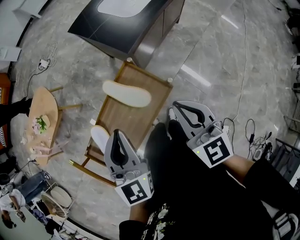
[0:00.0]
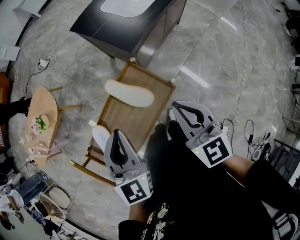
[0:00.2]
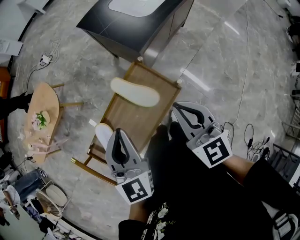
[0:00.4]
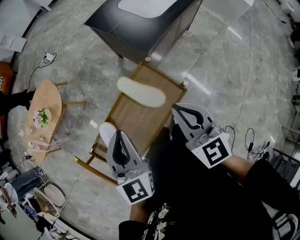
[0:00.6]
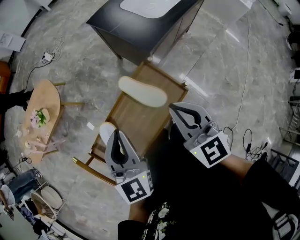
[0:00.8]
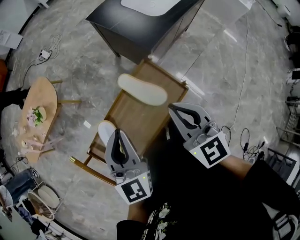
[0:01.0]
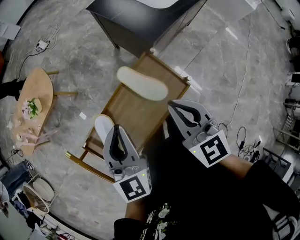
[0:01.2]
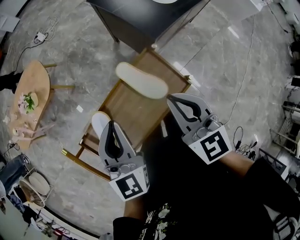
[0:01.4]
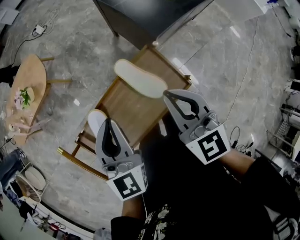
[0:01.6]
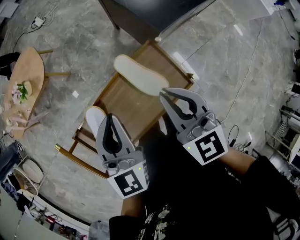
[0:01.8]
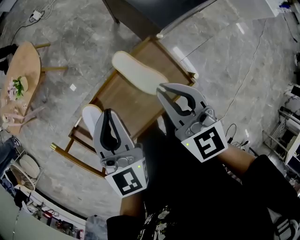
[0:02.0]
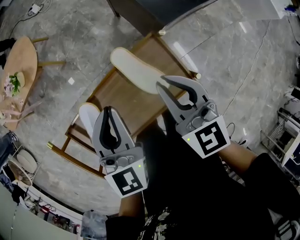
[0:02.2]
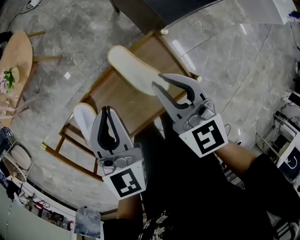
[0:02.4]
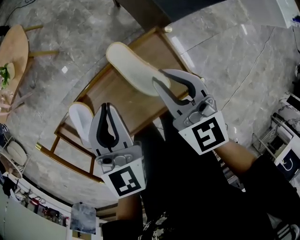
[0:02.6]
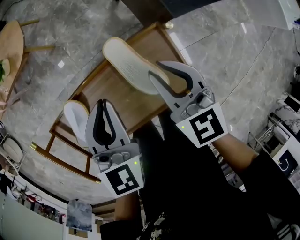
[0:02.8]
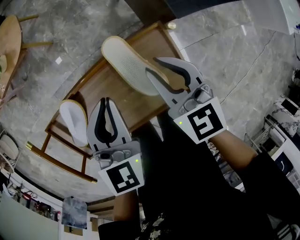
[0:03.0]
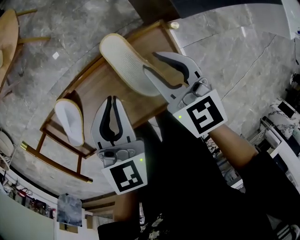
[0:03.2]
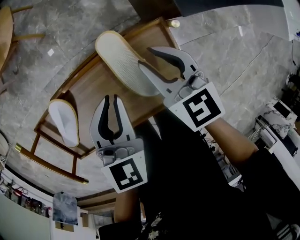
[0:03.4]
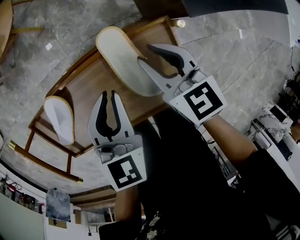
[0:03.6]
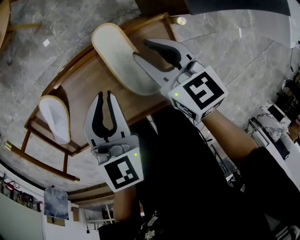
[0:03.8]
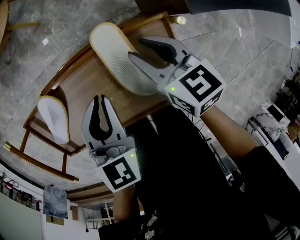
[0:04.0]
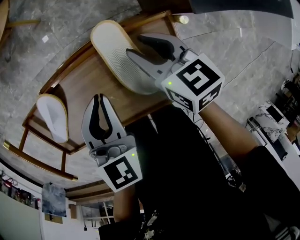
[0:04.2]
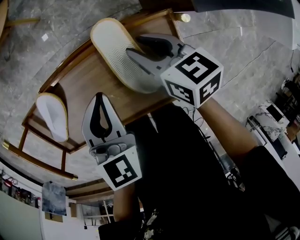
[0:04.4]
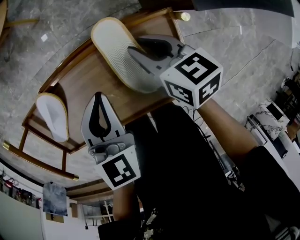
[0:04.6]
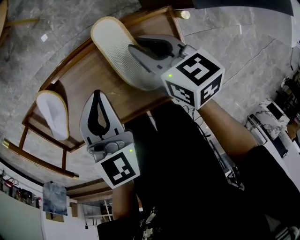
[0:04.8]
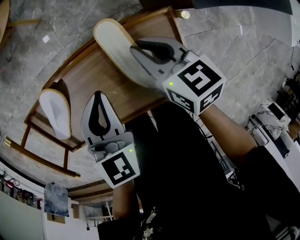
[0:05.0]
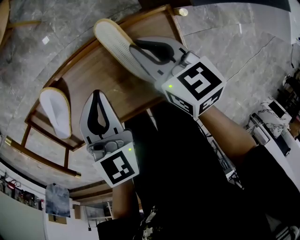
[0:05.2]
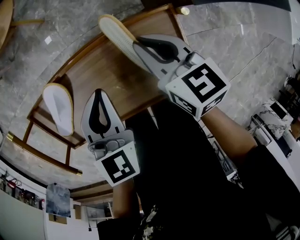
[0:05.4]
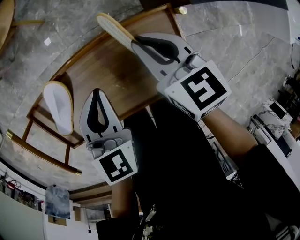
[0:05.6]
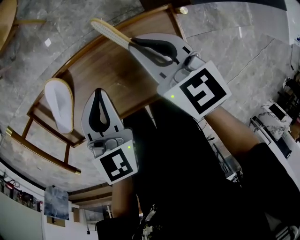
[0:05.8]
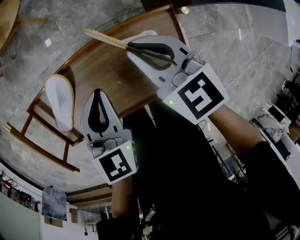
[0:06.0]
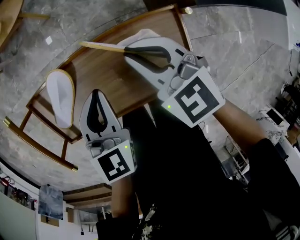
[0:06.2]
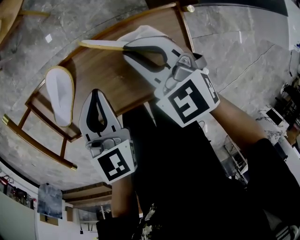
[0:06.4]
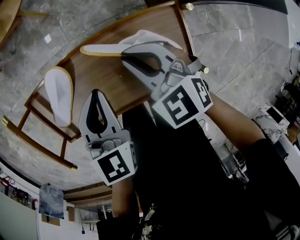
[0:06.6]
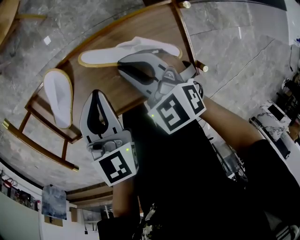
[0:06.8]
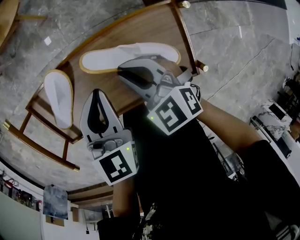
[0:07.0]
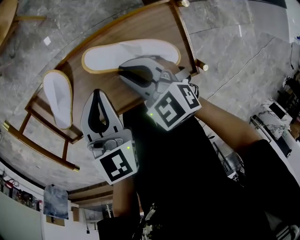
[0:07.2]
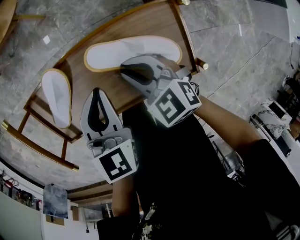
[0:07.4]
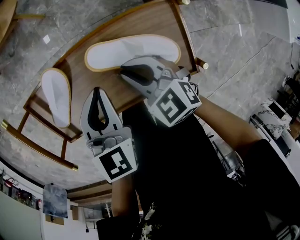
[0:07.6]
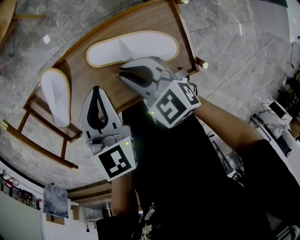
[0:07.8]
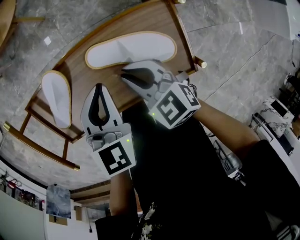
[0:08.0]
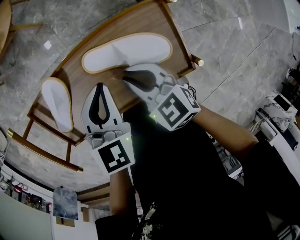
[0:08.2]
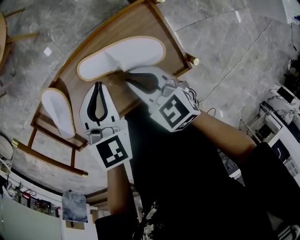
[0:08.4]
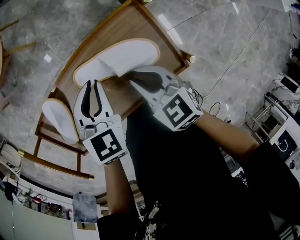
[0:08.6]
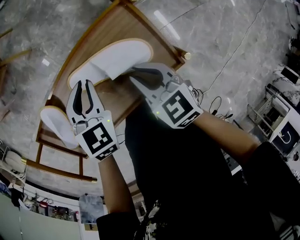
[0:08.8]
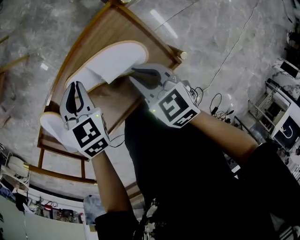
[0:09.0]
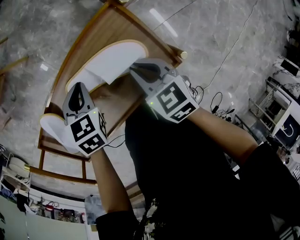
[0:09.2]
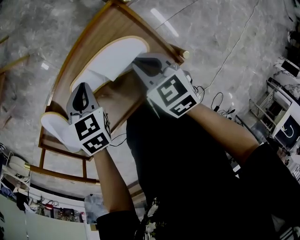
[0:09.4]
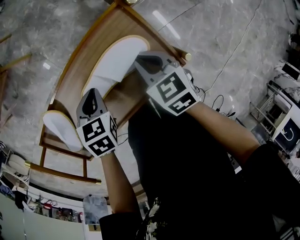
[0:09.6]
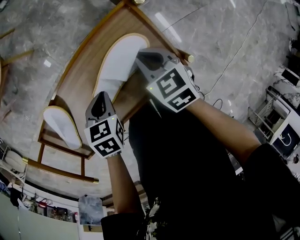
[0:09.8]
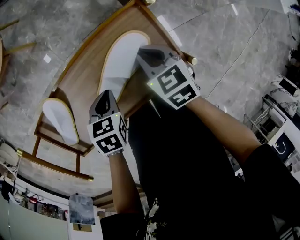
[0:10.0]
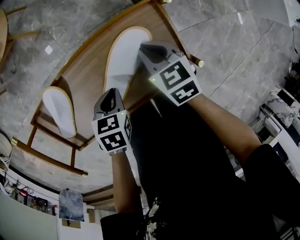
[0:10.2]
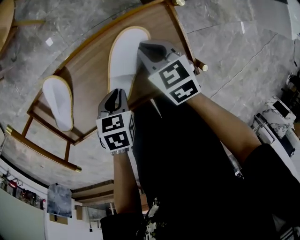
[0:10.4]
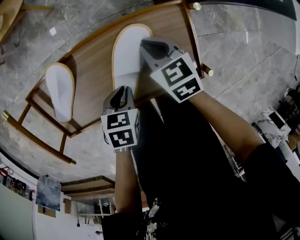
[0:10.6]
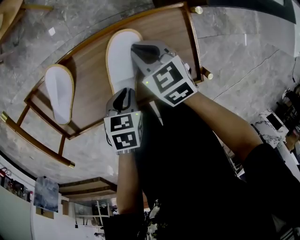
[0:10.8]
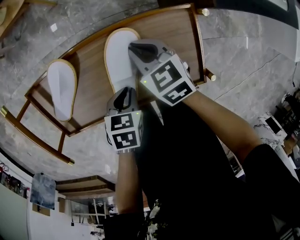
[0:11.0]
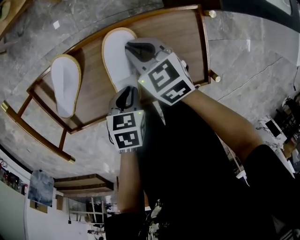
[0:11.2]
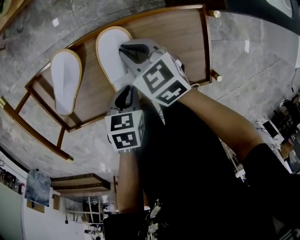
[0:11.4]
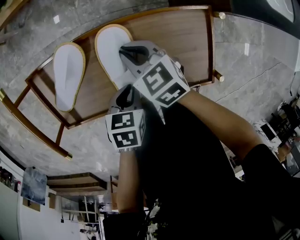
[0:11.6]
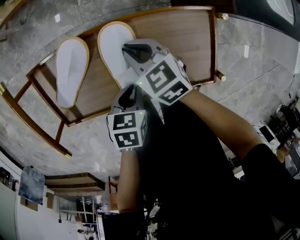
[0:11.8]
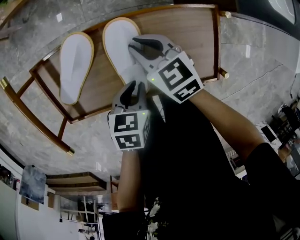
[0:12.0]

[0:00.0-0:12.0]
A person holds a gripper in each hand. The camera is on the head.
0.0 to 1.6 s: The two grippers go about 15 cm to the left and forward.
1.6 to 3.0 s: The right gripper moves downward and forward, some 15 cm, and changes its angle by about 20 degrees, while the left gripper heads downward, covering about 10 cm.
3.0 to 4.4 s: The right gripper is displaced downward by about 10 cm, and changes its angle by roughly 30 degrees. The left gripper travels downward by about 5 cm.
4.4 to 6.0 s: The left gripper ends up roughly 5 cm from where it was; the right gripper is displaced upward and to the left by some 10 cm, rotates some 30 degrees, and closes.
6.0 to 7.6 s: The right gripper shifts some 10 cm downward, backward and to the left.
7.6 to 9.0 s: The right gripper heads to the right, covering approximately 10 cm, and turns by approximately 40 degrees; the left gripper goes roughly 10 cm downward and forward, and turns by approximately 30 degrees.
9.0 to 10.4 s: The right gripper heads forward, covering some 5 cm. Meanwhile the left gripper moves backward, some 15 cm, and rotates roughly 30 degrees.
10.4 to 12.0 s: The right gripper heads to the left, covering approximately 15 cm, and changes its angle by roughly 20 degrees.

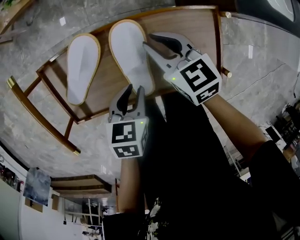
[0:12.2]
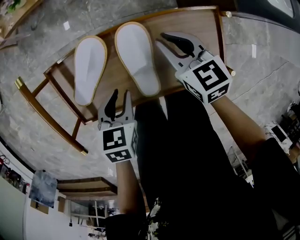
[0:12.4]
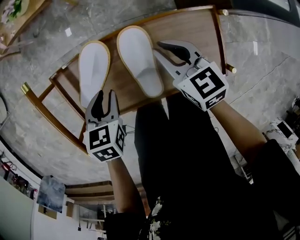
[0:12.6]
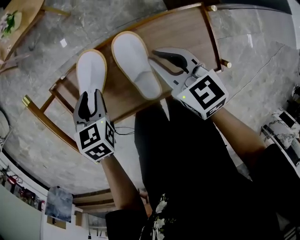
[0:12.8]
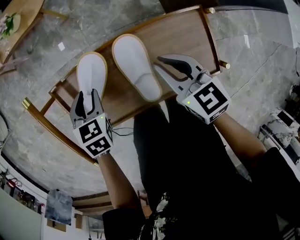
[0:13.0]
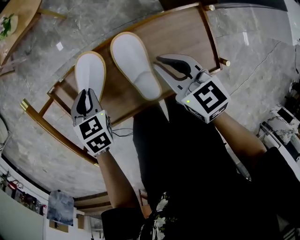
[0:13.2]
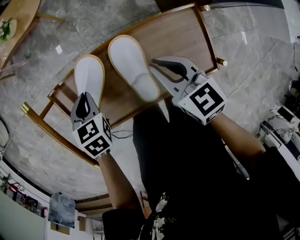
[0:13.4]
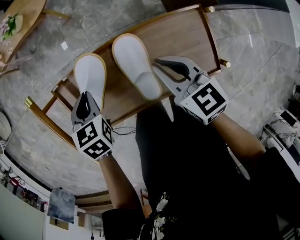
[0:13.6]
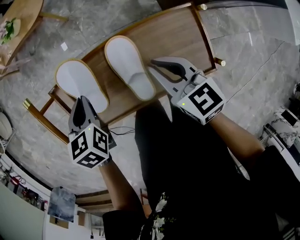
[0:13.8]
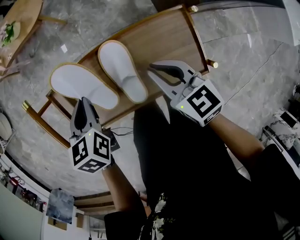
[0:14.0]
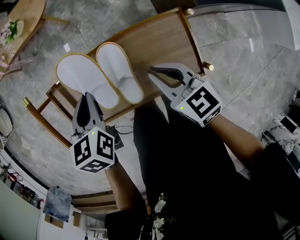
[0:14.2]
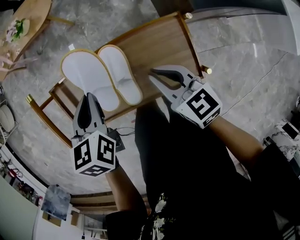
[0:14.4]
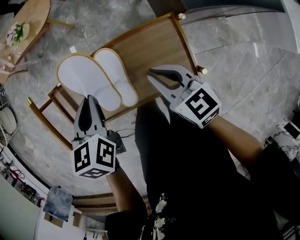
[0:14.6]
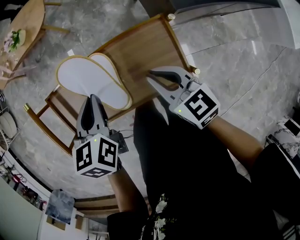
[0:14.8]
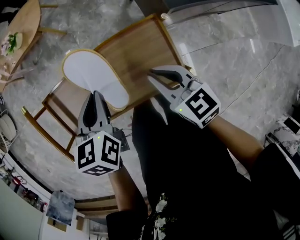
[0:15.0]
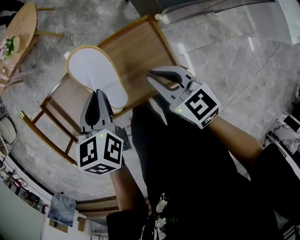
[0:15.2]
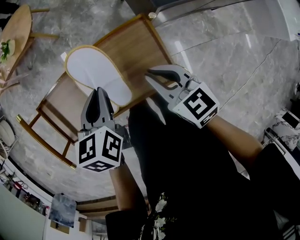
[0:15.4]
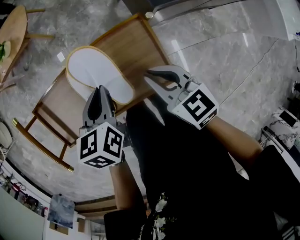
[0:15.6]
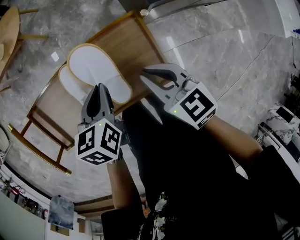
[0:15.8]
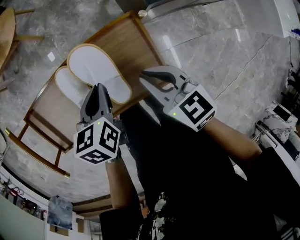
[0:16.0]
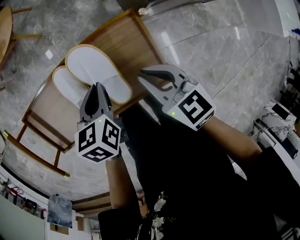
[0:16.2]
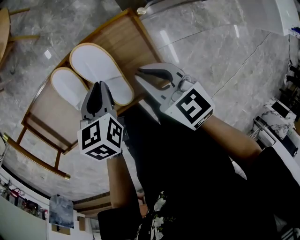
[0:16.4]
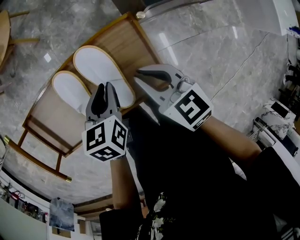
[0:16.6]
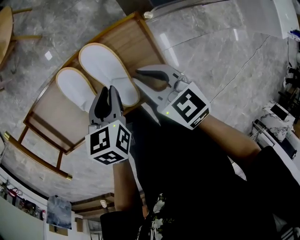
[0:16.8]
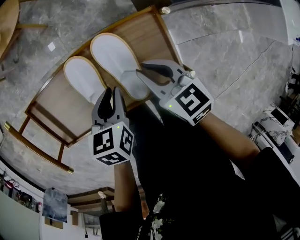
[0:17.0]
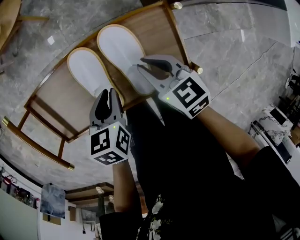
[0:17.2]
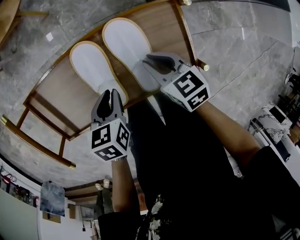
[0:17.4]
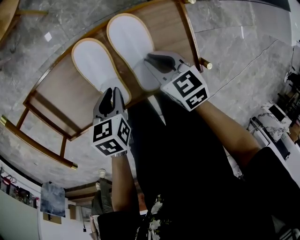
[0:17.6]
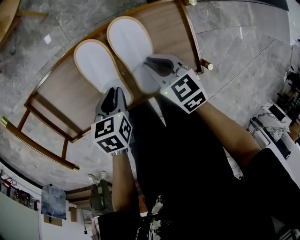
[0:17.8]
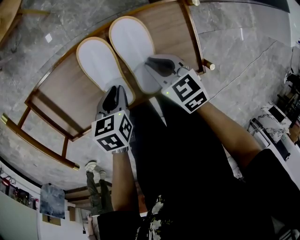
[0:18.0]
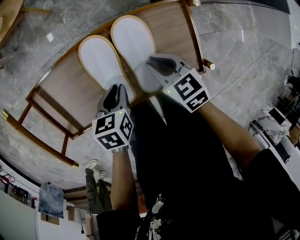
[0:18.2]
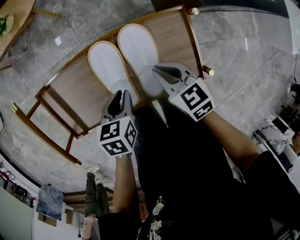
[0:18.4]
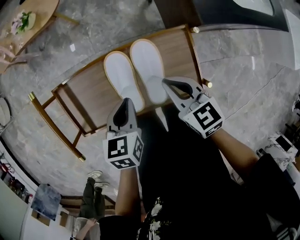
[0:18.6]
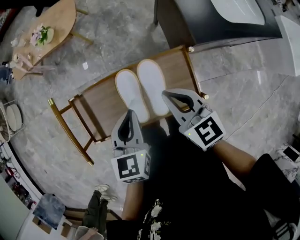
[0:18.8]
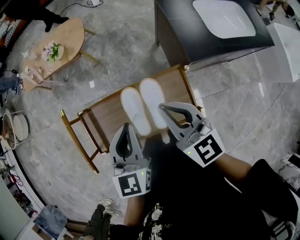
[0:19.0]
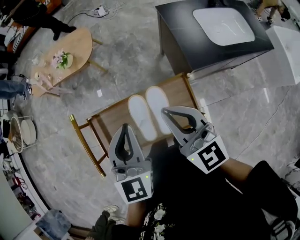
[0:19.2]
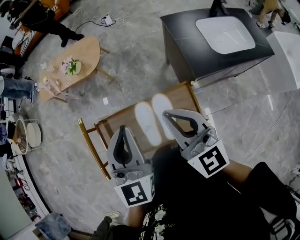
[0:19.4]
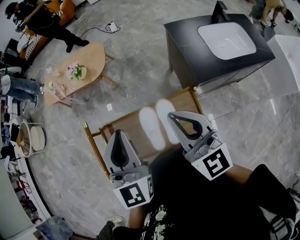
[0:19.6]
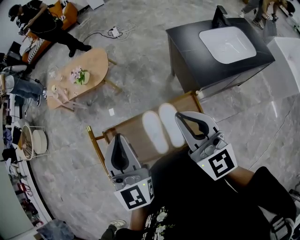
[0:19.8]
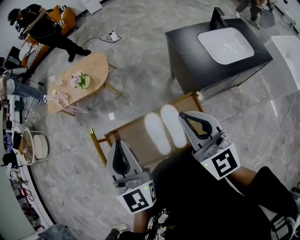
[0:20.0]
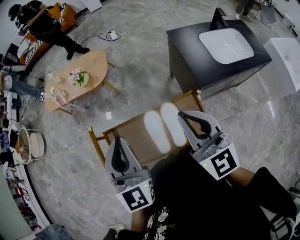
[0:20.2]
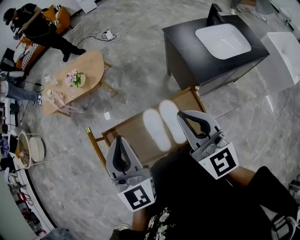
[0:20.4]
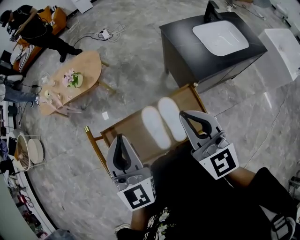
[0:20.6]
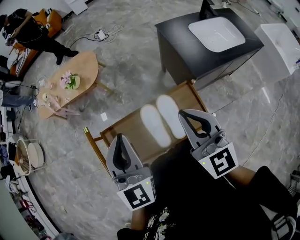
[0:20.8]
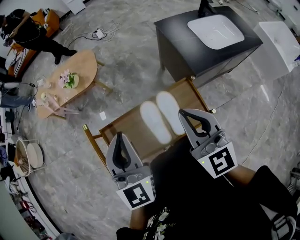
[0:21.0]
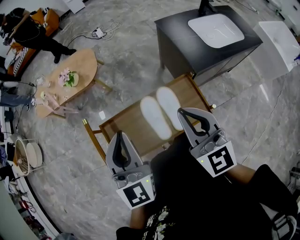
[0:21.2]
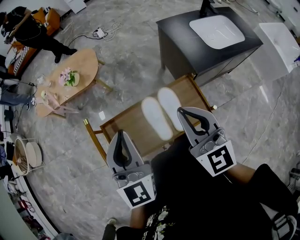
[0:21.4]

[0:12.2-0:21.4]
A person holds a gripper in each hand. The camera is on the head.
12.2 to 13.8 s: The right gripper heads upward, covering roughly 5 cm, while the left gripper heads to the left and forward, covering about 20 cm, and rotates some 20 degrees.
13.8 to 15.2 s: The left gripper travels to the right by about 20 cm. Meanwhile the right gripper is displaced to the right and backward by approximately 15 cm.
15.2 to 16.8 s: The left gripper goes some 10 cm downward and to the right.
16.8 to 18.4 s: The left gripper is displaced to the left by about 10 cm. Meanwhile the right gripper shifts roughly 10 cm to the left and downward.
18.4 to 19.8 s: The two grippers go about 40 cm upward. The left gripper points its fingers some 50 degrees further upward. Meanwhile the right gripper tilts its fingers some 50 degrees upward.
19.8 to 21.4 s: The right gripper travels to the left by some 5 cm. The left gripper ends up approximately 5 cm from where it was.

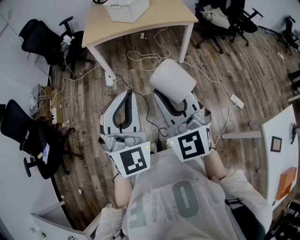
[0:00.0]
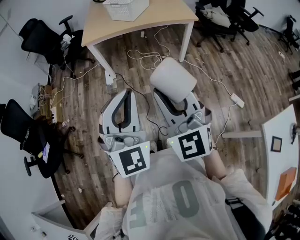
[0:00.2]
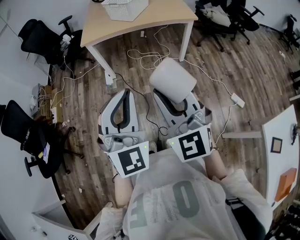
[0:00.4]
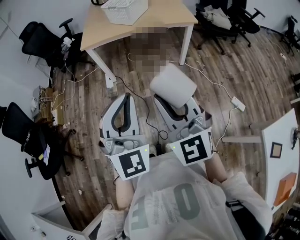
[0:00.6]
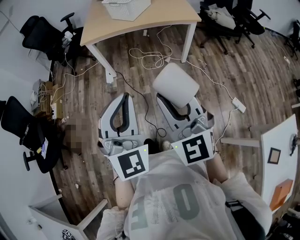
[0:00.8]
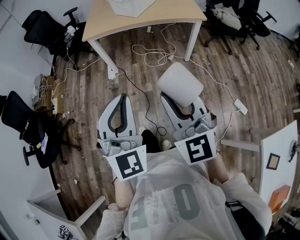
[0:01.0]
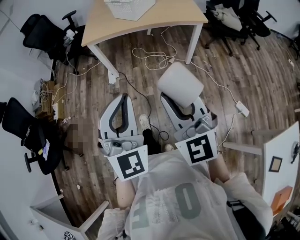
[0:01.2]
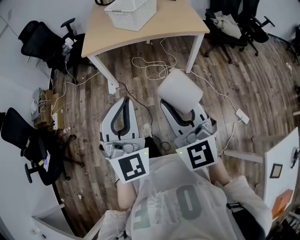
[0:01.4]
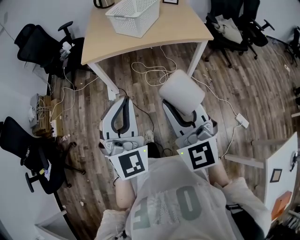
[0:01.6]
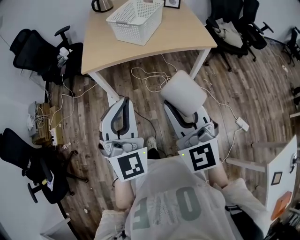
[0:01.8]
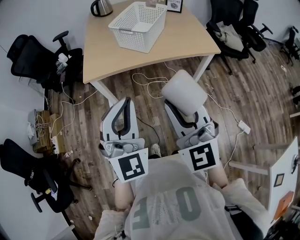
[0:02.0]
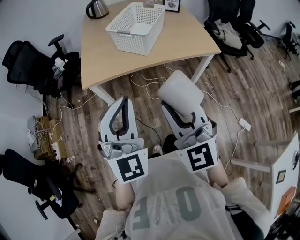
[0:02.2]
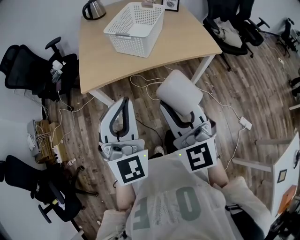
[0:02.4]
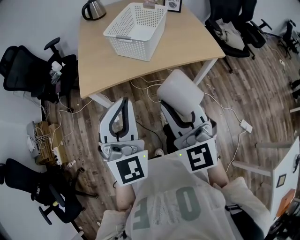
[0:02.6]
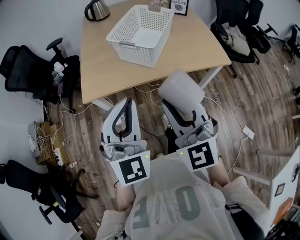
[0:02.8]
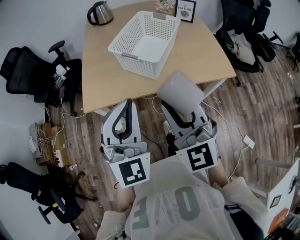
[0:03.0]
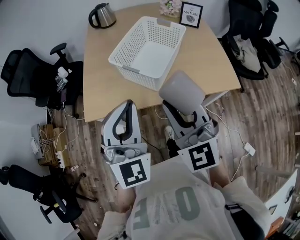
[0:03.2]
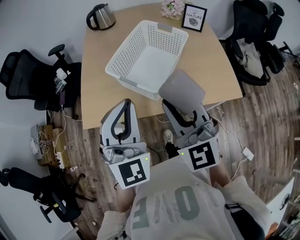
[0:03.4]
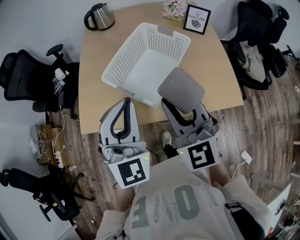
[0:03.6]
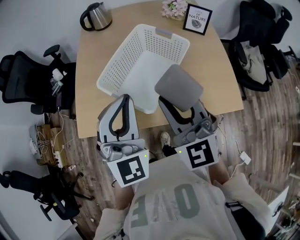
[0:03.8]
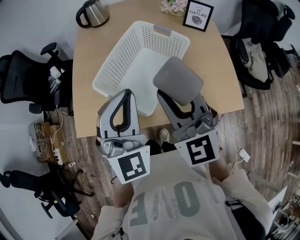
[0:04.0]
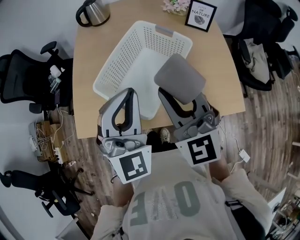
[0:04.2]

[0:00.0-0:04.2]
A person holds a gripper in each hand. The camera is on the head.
0.0 to 1.4 s: The grippers both shift forward by some 15 cm.
1.4 to 2.8 s: Both grippers travel together forward, about 40 cm.
2.8 to 4.2 s: Both grippers move forward, approximately 35 cm.
